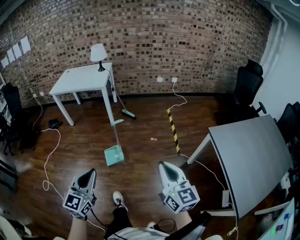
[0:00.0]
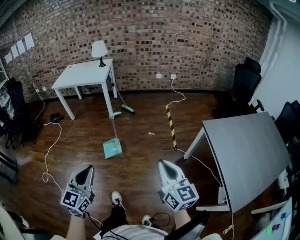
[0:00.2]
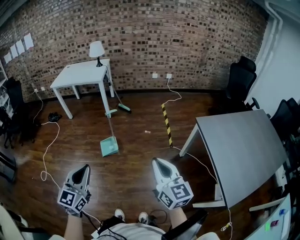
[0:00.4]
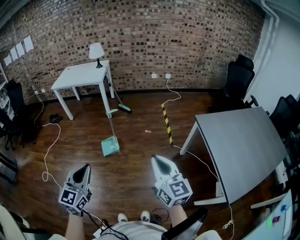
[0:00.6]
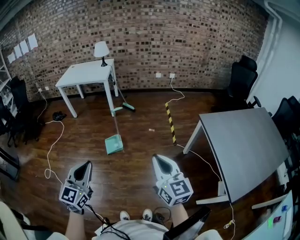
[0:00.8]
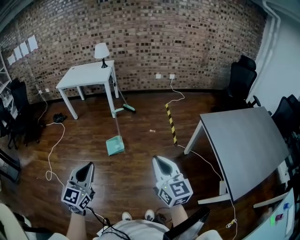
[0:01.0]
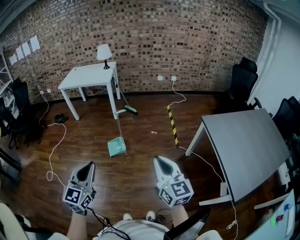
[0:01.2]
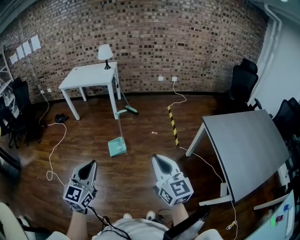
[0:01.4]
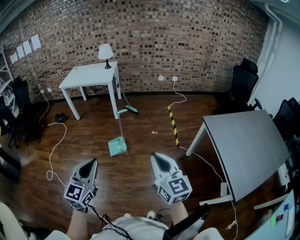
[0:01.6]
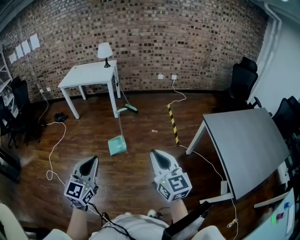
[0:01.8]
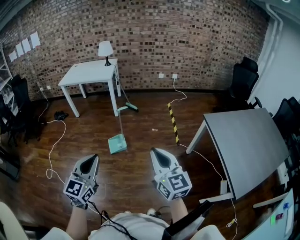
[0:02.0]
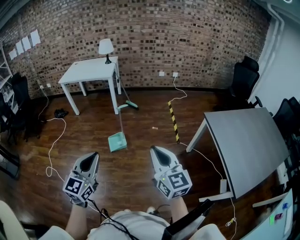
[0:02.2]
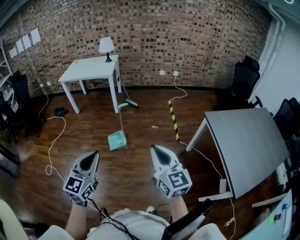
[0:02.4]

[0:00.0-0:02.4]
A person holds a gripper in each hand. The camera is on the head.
0:00.0 to 0:01.2: Both grippers travel together backward, roughly 15 cm.
0:01.2 to 0:02.4: The grippers stay close to where they were, moving slightly.

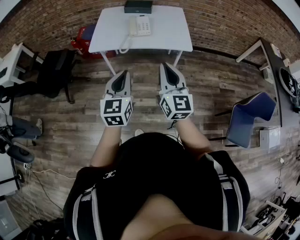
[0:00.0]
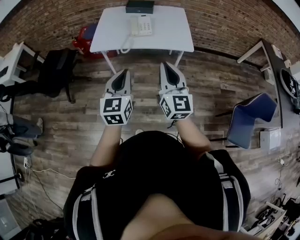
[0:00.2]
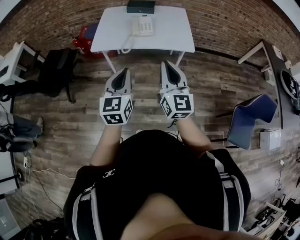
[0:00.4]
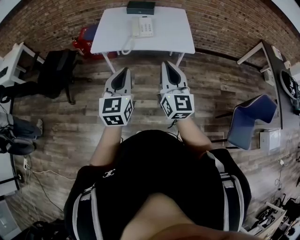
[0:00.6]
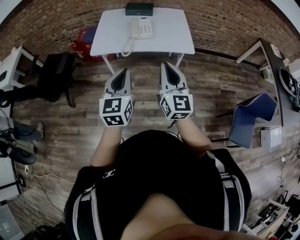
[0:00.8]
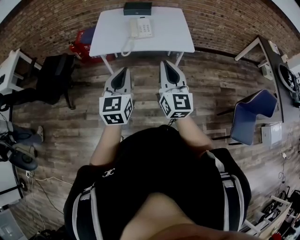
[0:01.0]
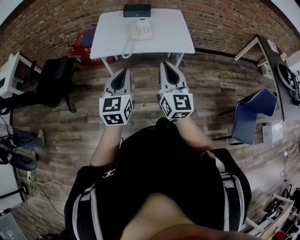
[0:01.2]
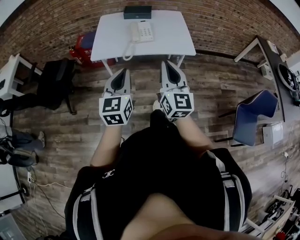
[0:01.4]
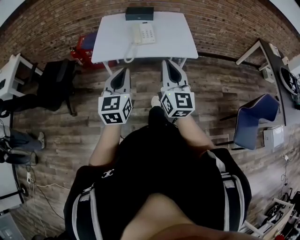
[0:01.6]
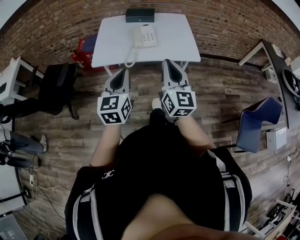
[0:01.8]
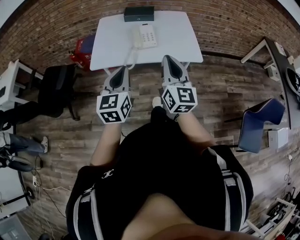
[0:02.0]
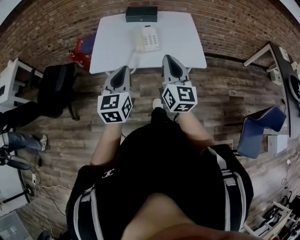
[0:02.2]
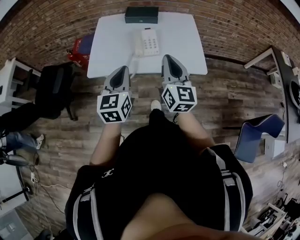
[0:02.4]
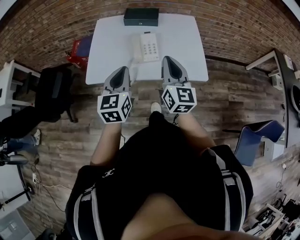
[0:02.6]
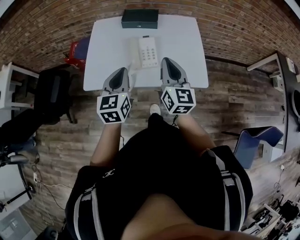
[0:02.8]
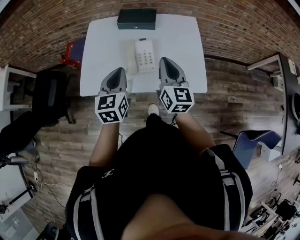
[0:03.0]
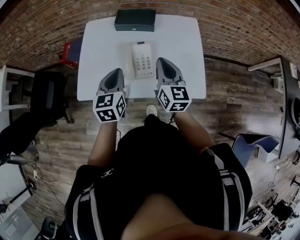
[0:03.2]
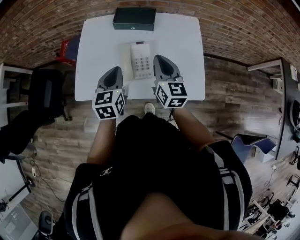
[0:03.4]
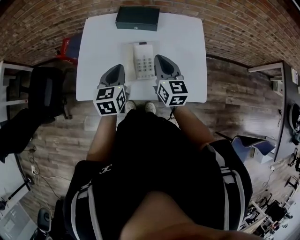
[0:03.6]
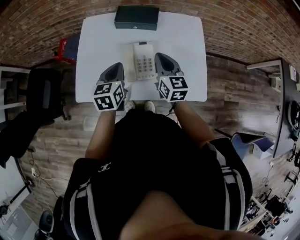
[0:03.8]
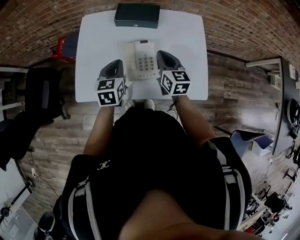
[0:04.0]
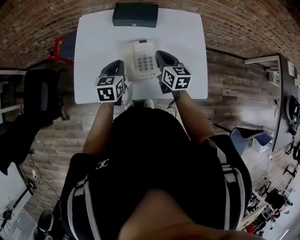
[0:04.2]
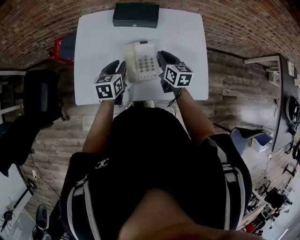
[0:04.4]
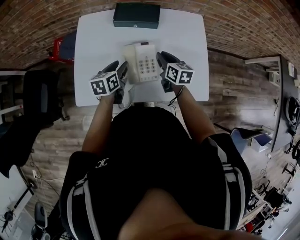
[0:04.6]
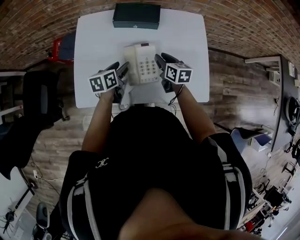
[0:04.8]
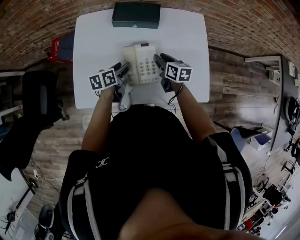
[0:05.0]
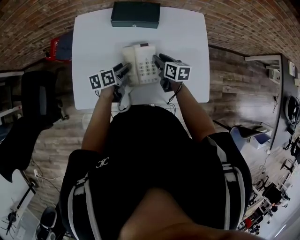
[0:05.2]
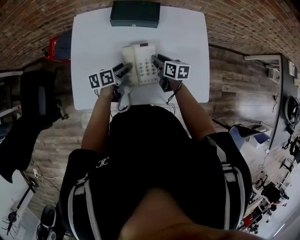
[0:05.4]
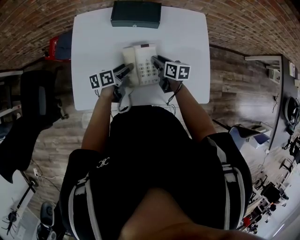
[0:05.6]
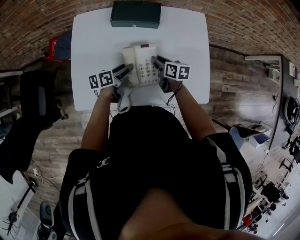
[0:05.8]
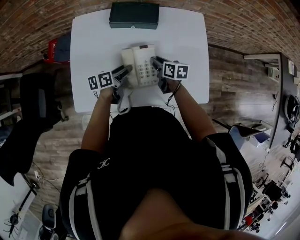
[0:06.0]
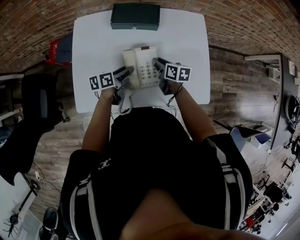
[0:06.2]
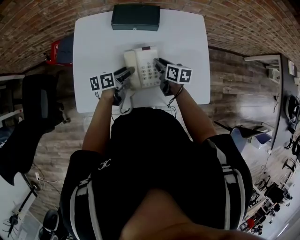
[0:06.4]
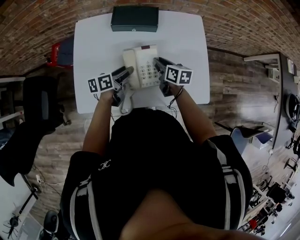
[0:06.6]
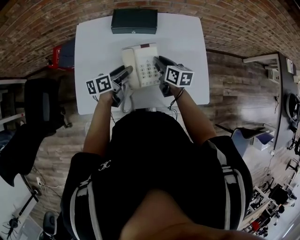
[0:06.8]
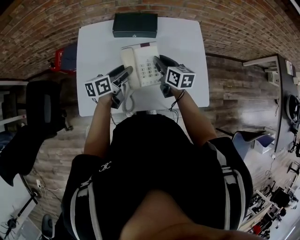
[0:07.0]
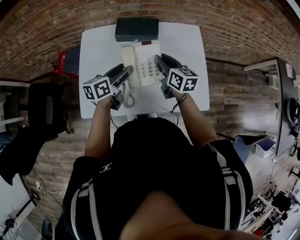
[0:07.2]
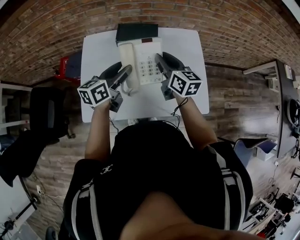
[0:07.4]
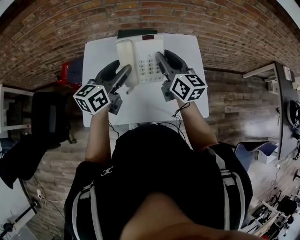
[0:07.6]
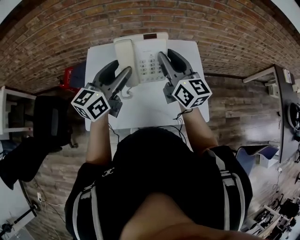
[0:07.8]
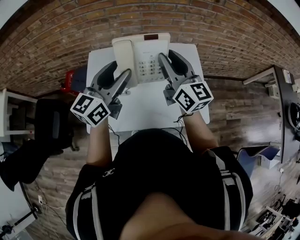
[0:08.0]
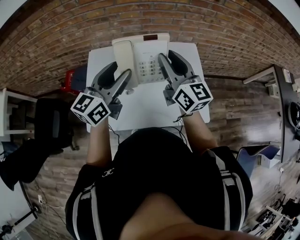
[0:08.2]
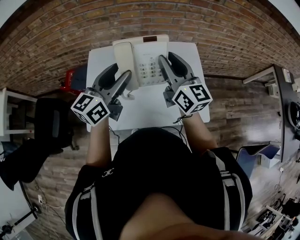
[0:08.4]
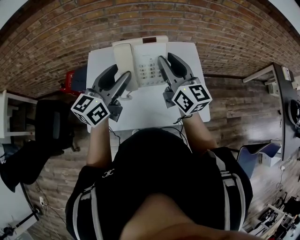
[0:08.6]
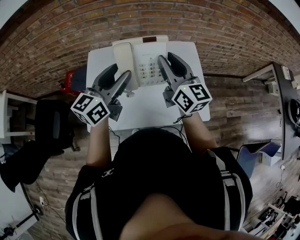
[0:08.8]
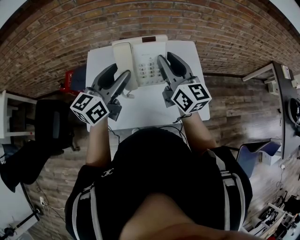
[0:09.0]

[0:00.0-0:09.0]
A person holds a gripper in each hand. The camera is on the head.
0:00.0 to 0:01.6: The left gripper is displaced forward and to the left by about 10 cm. Meanwhile the right gripper shifts roughly 5 cm forward.
0:01.6 to 0:03.0: The two grippers go roughly 40 cm forward.
0:03.0 to 0:04.4: The right gripper goes approximately 20 cm downward and forward, and changes its angle by some 30 degrees; the left gripper travels forward and downward by some 20 cm, and turns by approximately 20 degrees.
0:04.4 to 0:06.0: Both grippers travel together downward, approximately 10 cm. The right gripper swivels about 20 degrees. The left gripper changes its angle by about 40 degrees, and opens up.
0:06.0 to 0:07.6: The grippers both shift upward by about 30 cm. The left gripper changes its angle by approximately 40 degrees; the right gripper tips its fingers upward by about 30 degrees.
0:07.6 to 0:09.0: Both grippers travel together upward, some 5 cm.

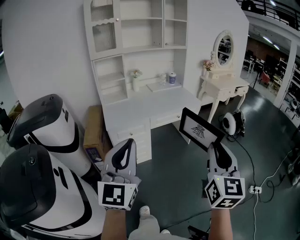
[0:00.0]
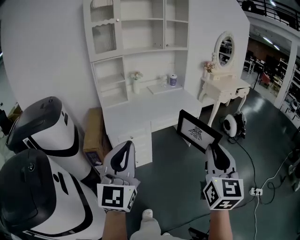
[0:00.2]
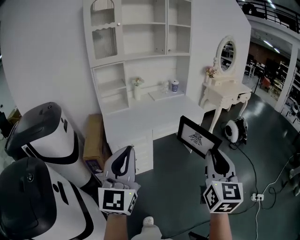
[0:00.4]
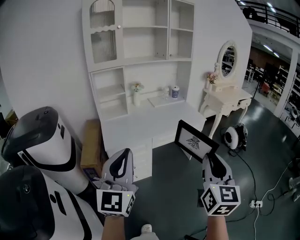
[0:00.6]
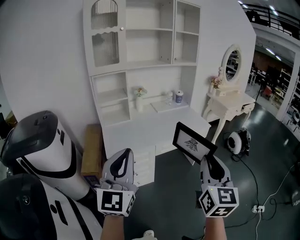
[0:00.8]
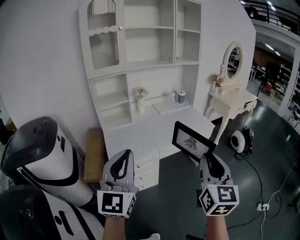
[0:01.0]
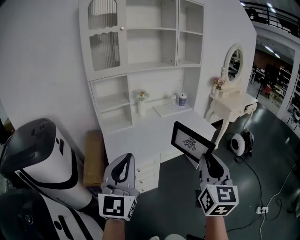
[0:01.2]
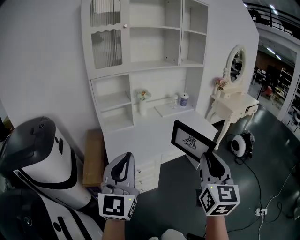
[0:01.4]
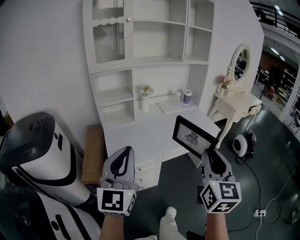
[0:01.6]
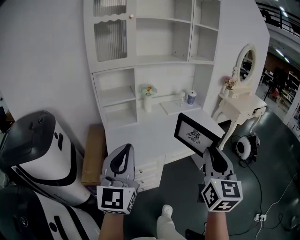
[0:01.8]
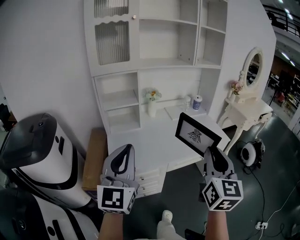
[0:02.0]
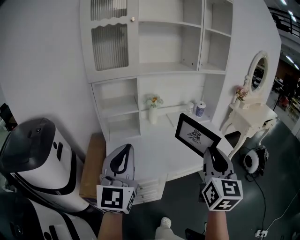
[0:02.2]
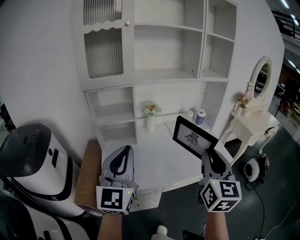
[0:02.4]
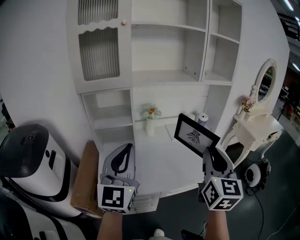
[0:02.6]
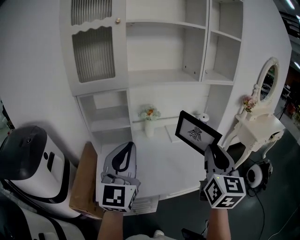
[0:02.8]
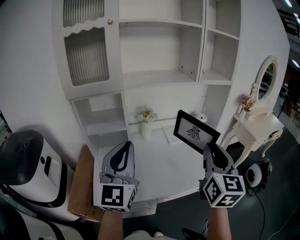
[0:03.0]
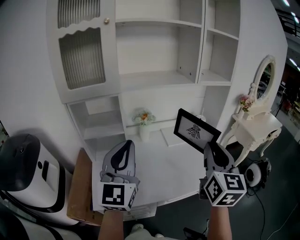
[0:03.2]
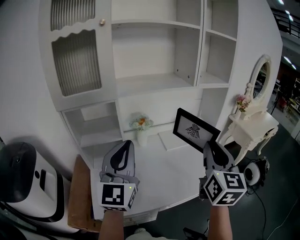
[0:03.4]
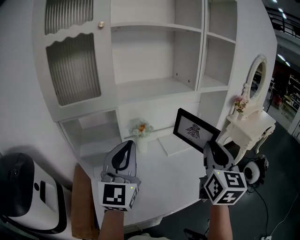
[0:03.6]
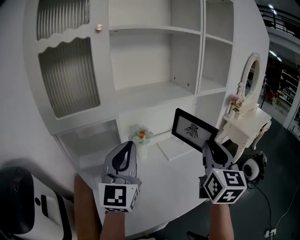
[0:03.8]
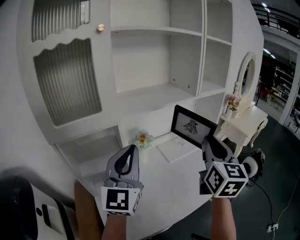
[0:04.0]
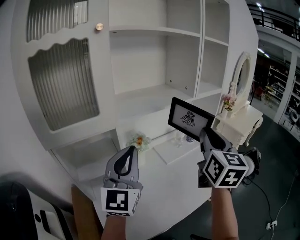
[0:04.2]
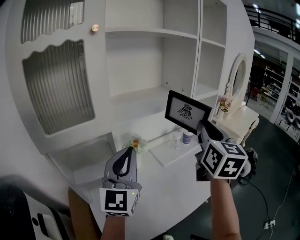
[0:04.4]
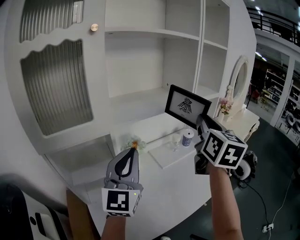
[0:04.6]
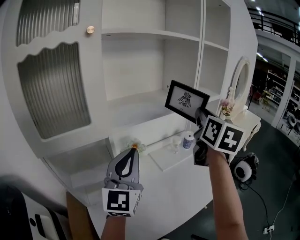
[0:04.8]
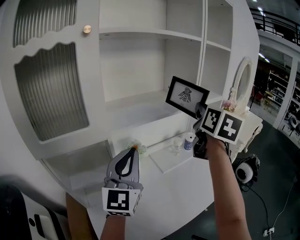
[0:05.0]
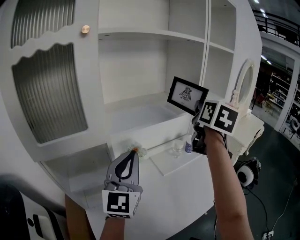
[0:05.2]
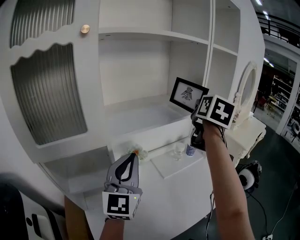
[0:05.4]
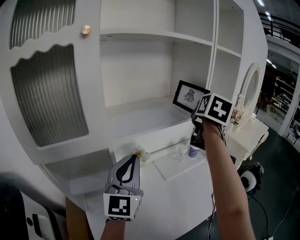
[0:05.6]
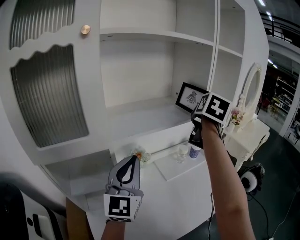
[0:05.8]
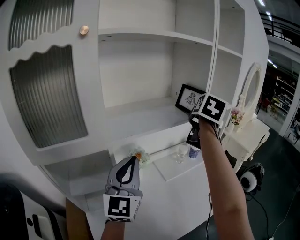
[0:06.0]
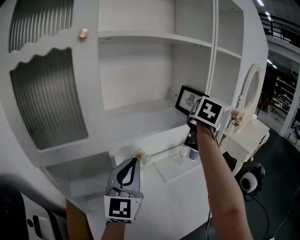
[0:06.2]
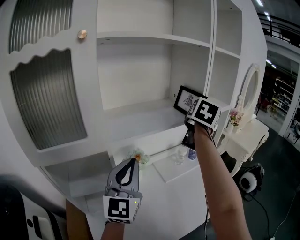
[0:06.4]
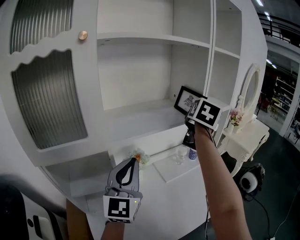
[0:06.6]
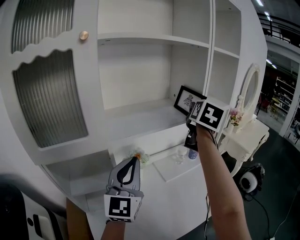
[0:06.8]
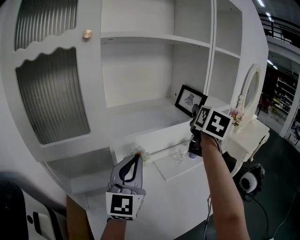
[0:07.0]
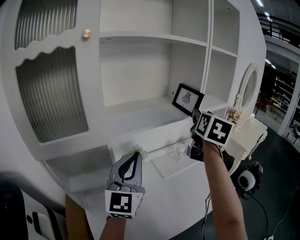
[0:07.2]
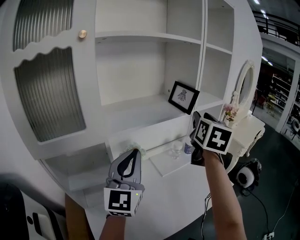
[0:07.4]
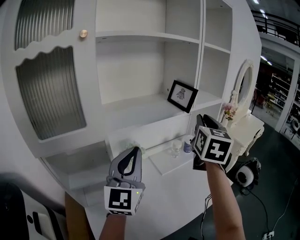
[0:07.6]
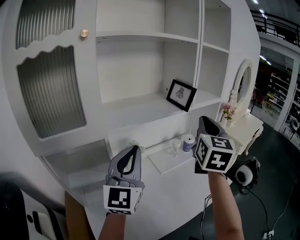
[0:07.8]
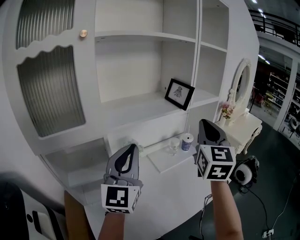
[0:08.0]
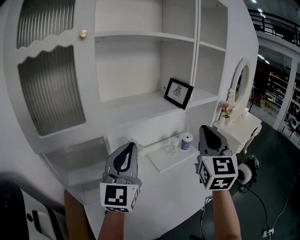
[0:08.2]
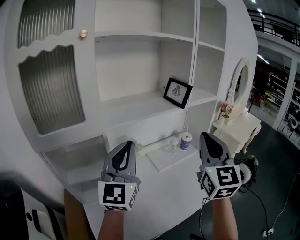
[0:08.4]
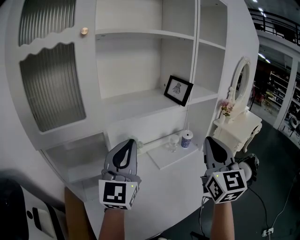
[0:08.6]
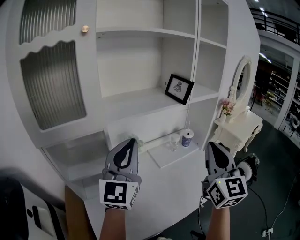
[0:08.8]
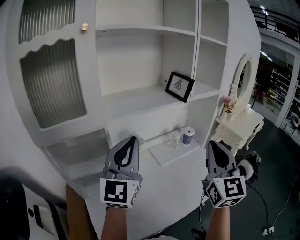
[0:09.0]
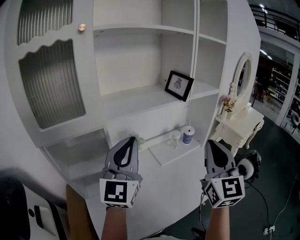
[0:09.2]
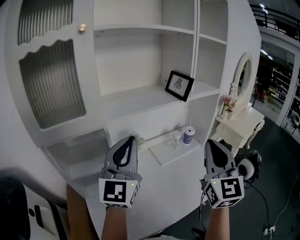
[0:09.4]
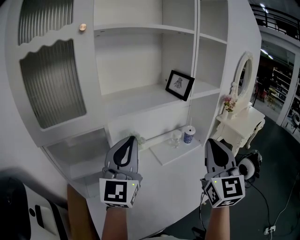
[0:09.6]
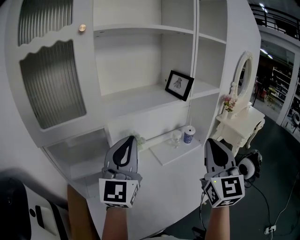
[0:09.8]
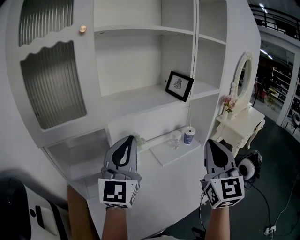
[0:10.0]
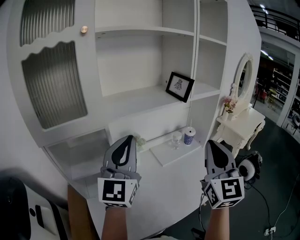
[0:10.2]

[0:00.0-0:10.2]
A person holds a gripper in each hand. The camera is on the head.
0:00.0 to 0:01.4: Both grippers travel together forward and to the left, approximately 30 cm.
0:01.4 to 0:03.0: Both grippers move forward, some 35 cm.
0:03.0 to 0:04.4: The left gripper moves forward and to the left, roughly 20 cm; the right gripper shifts about 20 cm forward, to the left and upward.
0:04.4 to 0:05.8: The right gripper shifts some 20 cm forward, and turns by some 20 degrees, while the left gripper shifts roughly 10 cm forward.
0:05.8 to 0:07.2: The right gripper travels backward by some 5 cm, and opens its fingers.
0:07.2 to 0:08.8: The right gripper shifts some 20 cm backward, swivels about 30 degrees, and closes.
0:08.8 to 0:10.2: The grippers stay close to where they were, moving slightly.

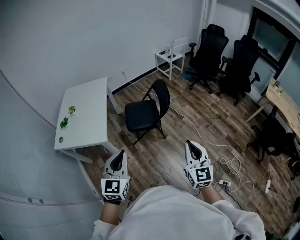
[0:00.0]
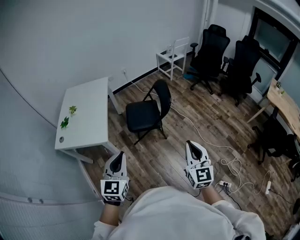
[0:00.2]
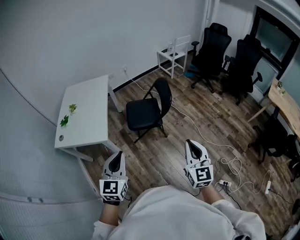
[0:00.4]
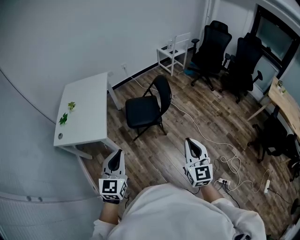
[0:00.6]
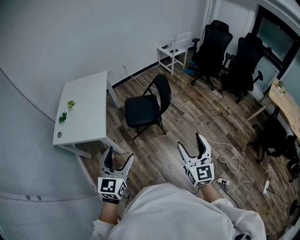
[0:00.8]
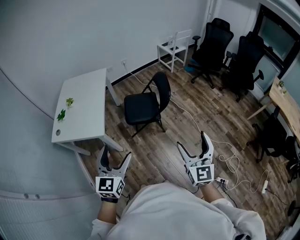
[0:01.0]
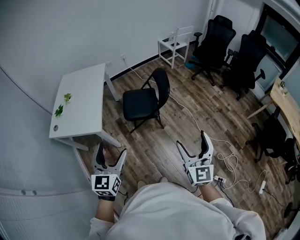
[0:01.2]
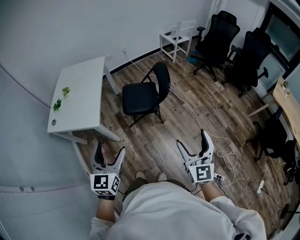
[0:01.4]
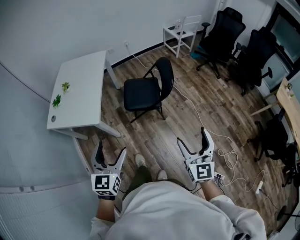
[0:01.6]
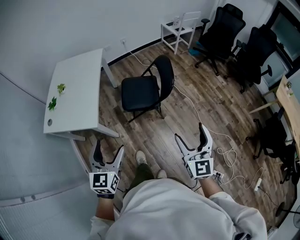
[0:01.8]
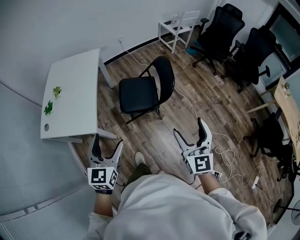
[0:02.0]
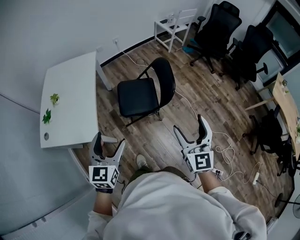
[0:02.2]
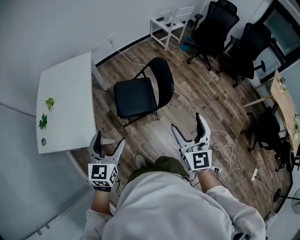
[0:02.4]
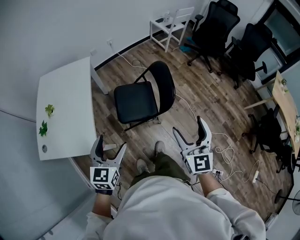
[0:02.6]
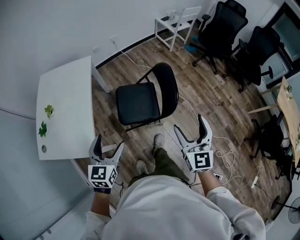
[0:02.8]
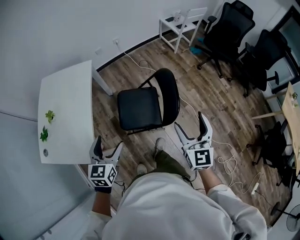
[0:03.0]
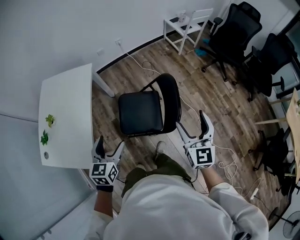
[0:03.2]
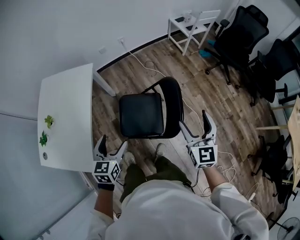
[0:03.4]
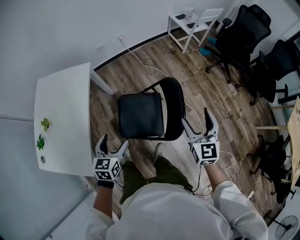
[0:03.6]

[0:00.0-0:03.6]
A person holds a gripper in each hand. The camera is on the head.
0:00.0 to 0:01.8: The right gripper travels forward by roughly 10 cm, and opens up, while the left gripper goes approximately 10 cm forward and downward, and opens its fingers.
0:01.8 to 0:03.6: The two grippers travel together, forward, roughly 50 cm. The left gripper swivels approximately 20 degrees.
